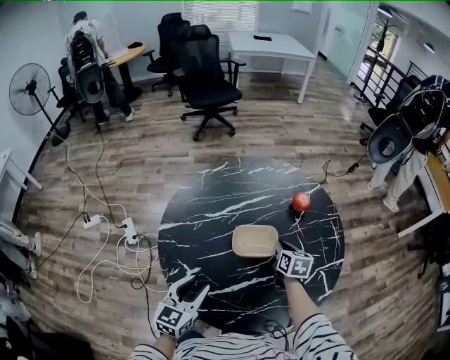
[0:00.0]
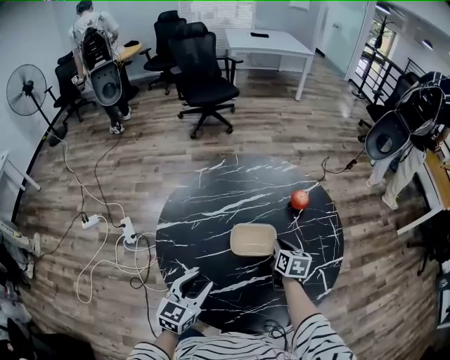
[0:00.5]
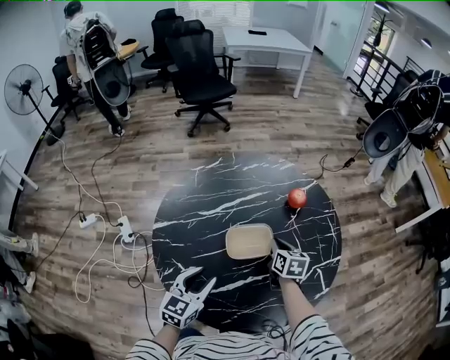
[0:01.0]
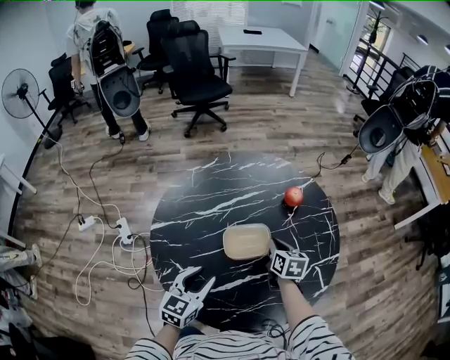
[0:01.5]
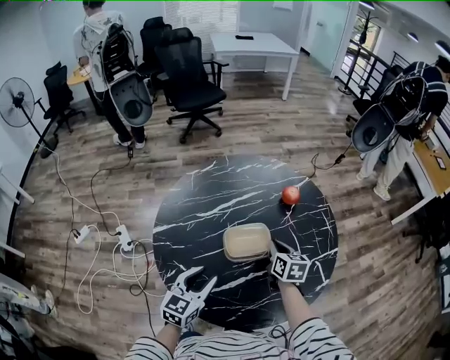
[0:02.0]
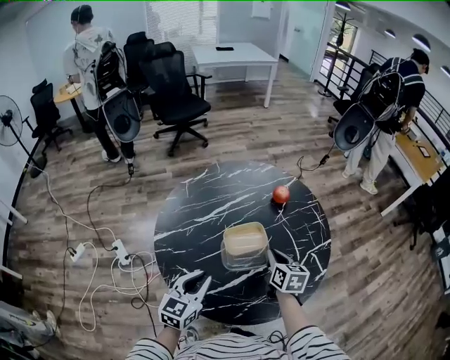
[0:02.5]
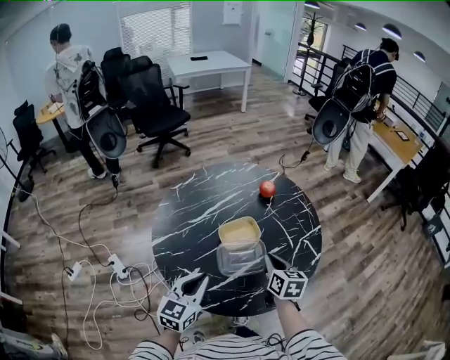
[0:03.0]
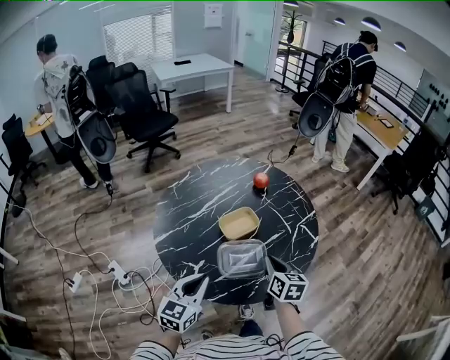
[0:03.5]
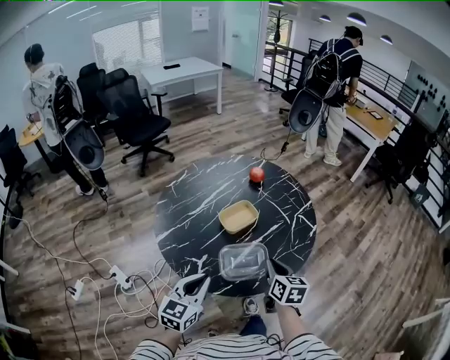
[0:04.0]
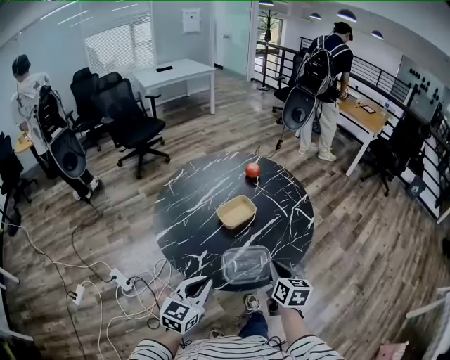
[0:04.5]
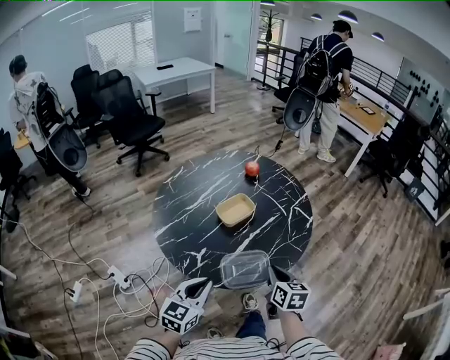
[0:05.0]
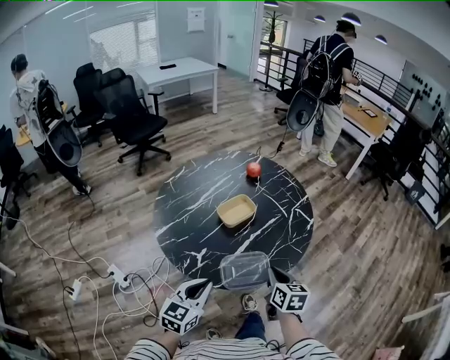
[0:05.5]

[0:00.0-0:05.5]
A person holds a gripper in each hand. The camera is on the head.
0:00.0 to 0:02.0: The grippers stay close to where they were, moving slightly.
0:02.0 to 0:03.5: The right gripper goes approximately 20 cm backward, and rotates about 20 degrees. Meanwhile the left gripper is displaced backward and upward by about 10 cm, and closes its fingers.
0:03.5 to 0:05.5: The two grippers go roughly 10 cm backward.

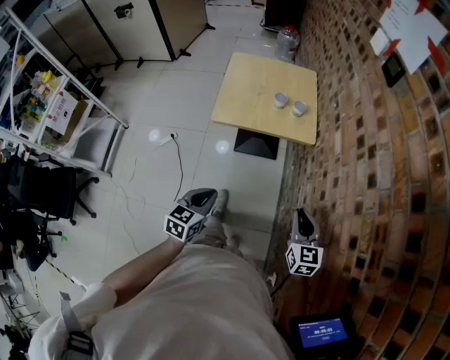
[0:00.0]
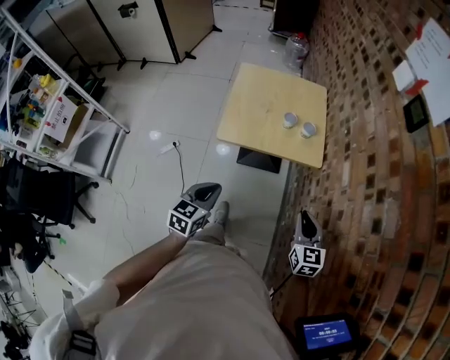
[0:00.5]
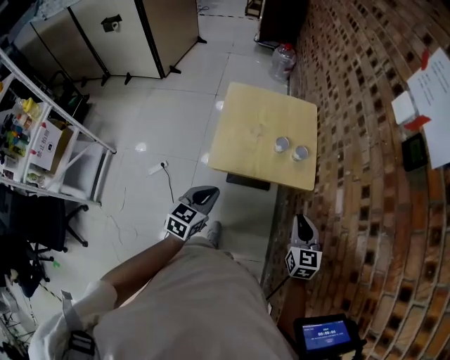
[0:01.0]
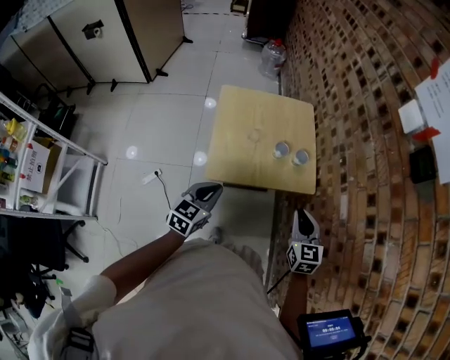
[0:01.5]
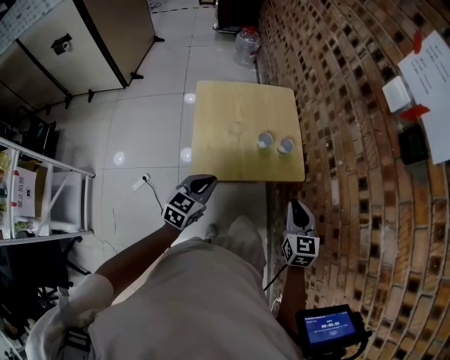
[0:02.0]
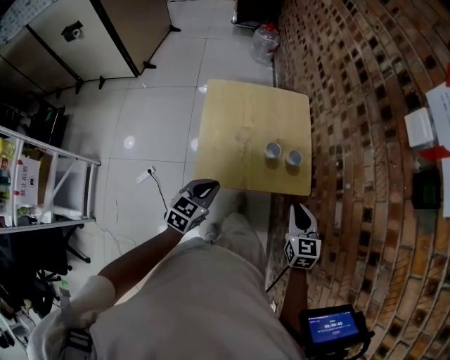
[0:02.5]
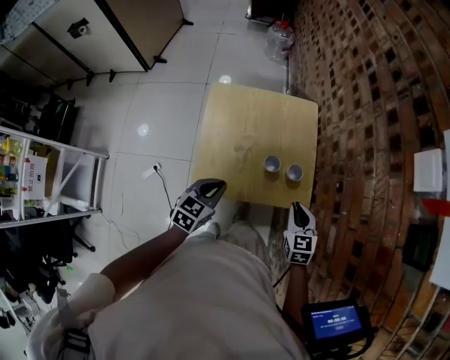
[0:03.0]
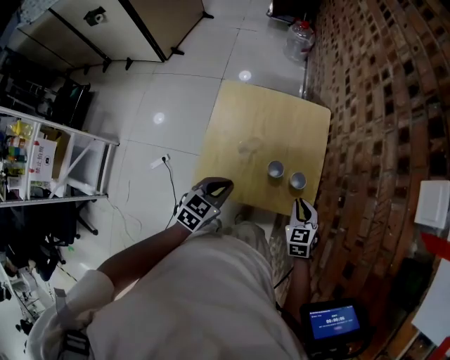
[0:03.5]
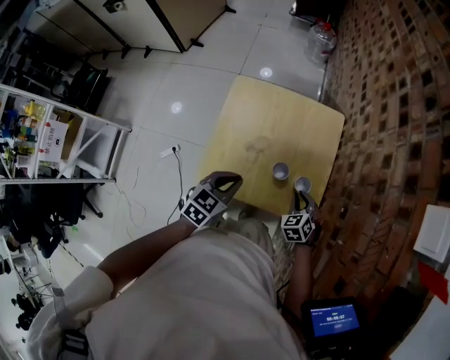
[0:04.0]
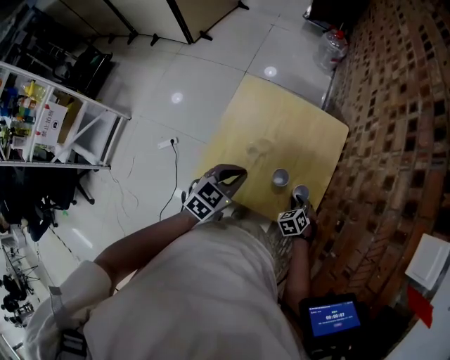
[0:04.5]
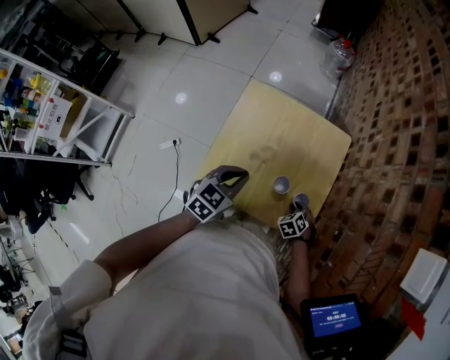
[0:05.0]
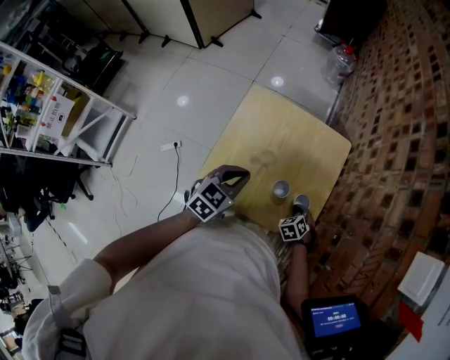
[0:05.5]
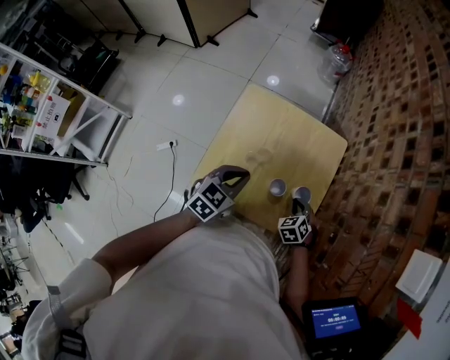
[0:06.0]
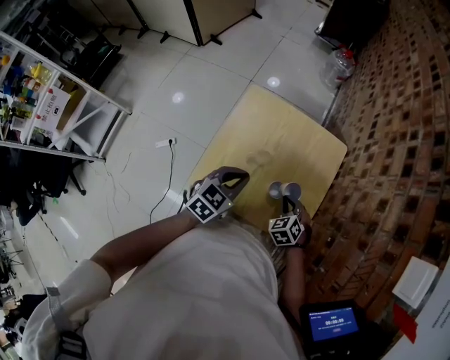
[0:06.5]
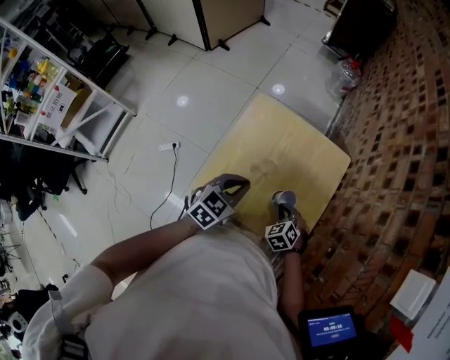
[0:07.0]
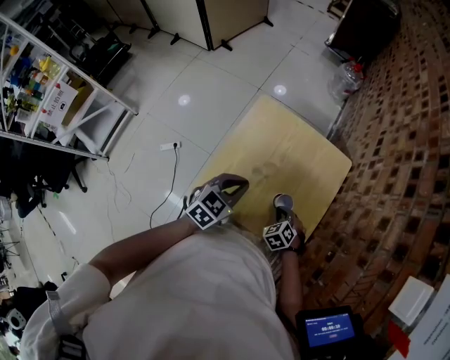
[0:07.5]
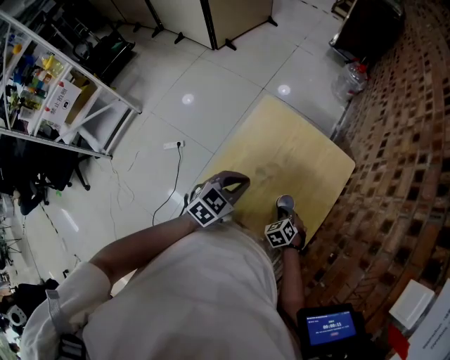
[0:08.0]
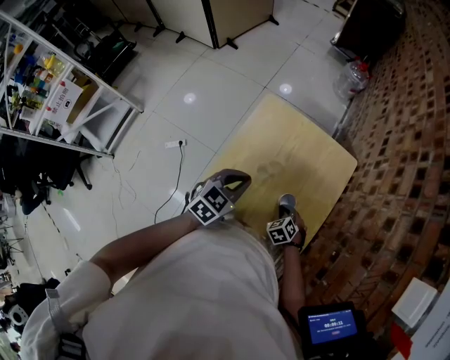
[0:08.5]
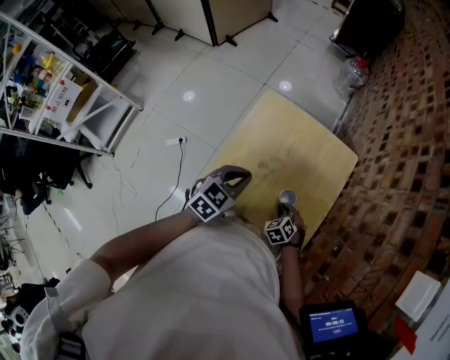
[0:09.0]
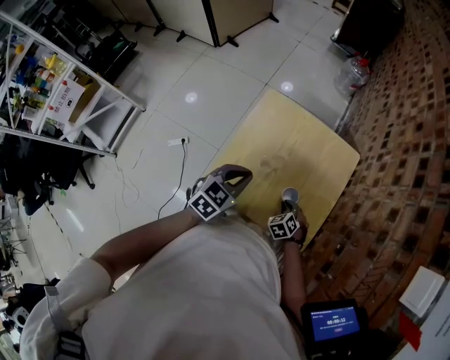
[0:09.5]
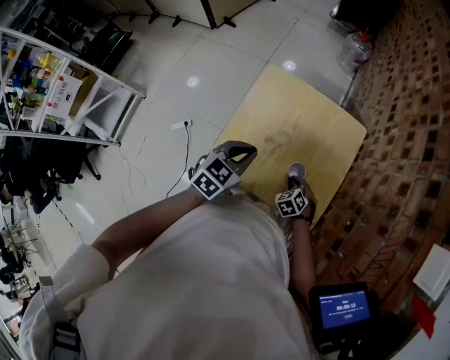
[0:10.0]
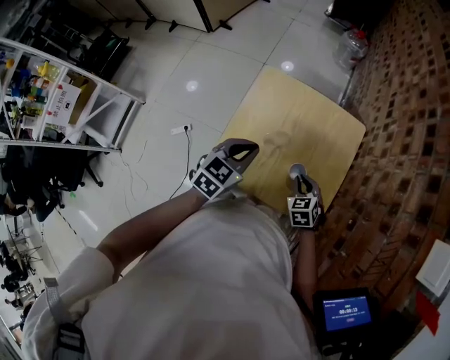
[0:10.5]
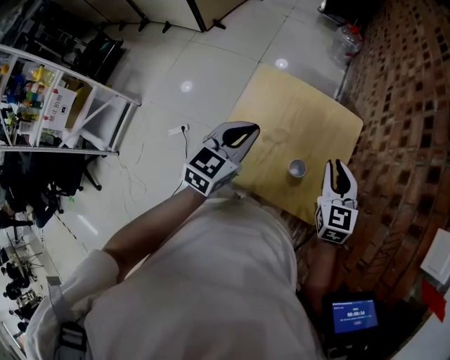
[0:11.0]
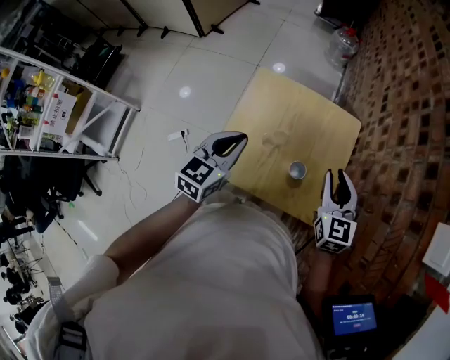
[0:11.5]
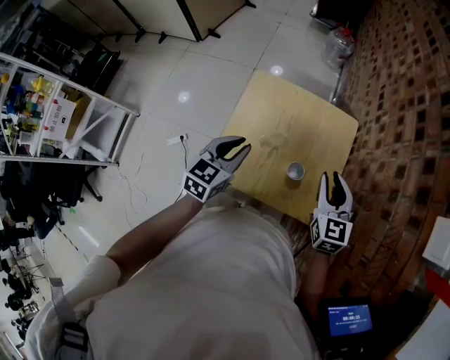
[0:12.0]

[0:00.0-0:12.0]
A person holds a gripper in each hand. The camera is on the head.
0:00.0 to 0:02.0: The right gripper goes approximately 30 cm forward and to the left; the left gripper moves forward, some 35 cm.
0:02.0 to 0:04.0: The left gripper shifts approximately 15 cm forward. Meanwhile the right gripper is displaced forward and downward by approximately 30 cm, and turns by approximately 50 degrees.
0:04.0 to 0:06.0: The left gripper moves forward, roughly 5 cm; the right gripper reaches roughly 10 cm downward, then returns.
0:06.0 to 0:08.0: The right gripper goes some 10 cm to the left and downward.
0:08.0 to 0:10.0: The grippers stay close to where they were, moving slightly.
0:10.0 to 0:12.0: The right gripper heads upward, covering about 30 cm, and angles its fingers upward, by roughly 40 degrees.

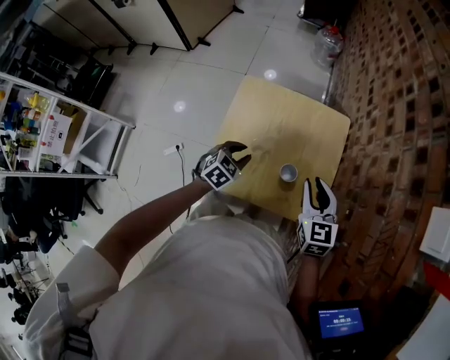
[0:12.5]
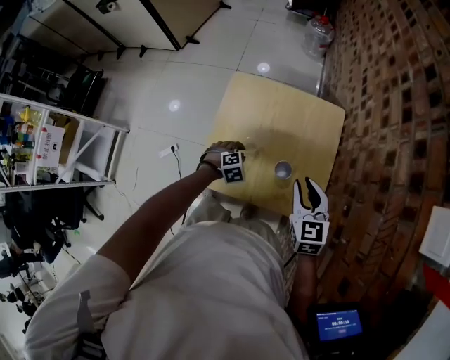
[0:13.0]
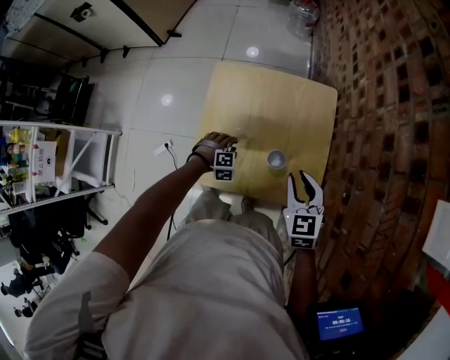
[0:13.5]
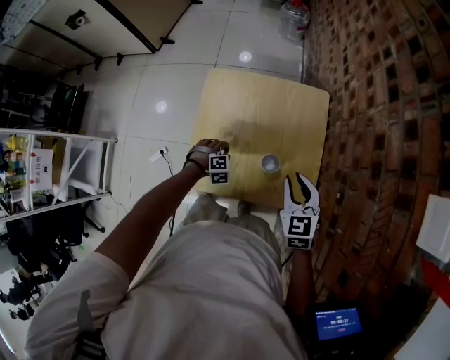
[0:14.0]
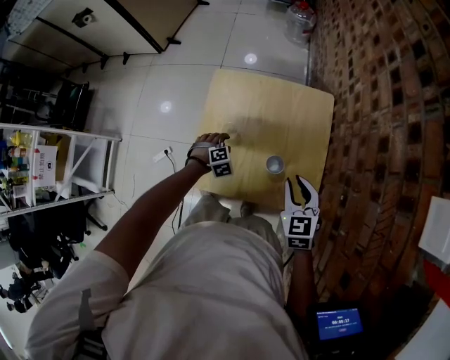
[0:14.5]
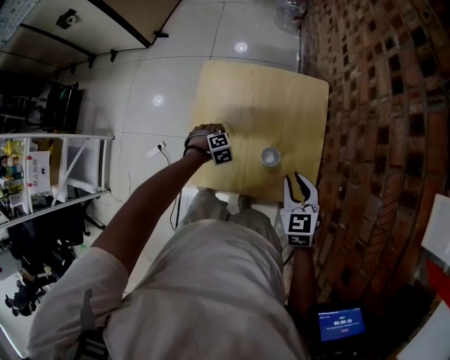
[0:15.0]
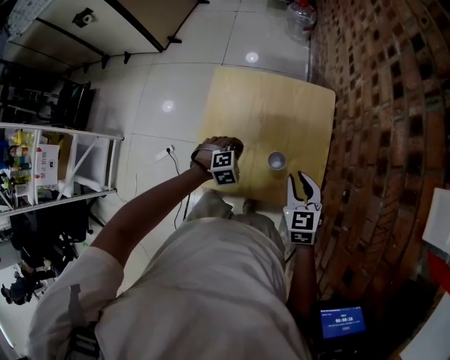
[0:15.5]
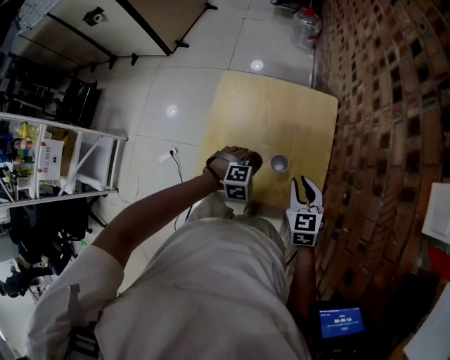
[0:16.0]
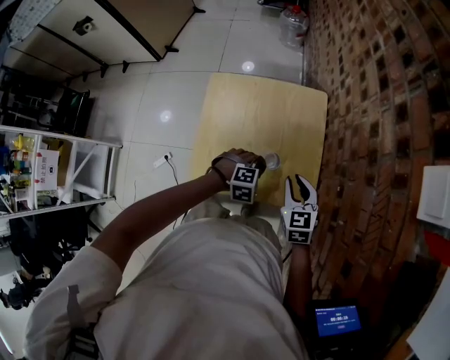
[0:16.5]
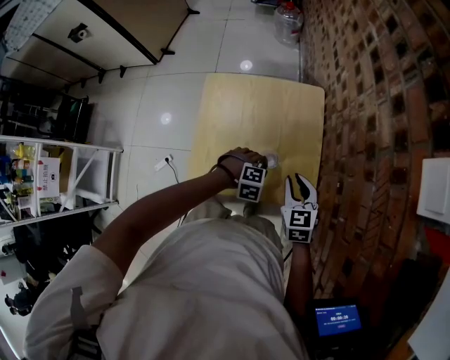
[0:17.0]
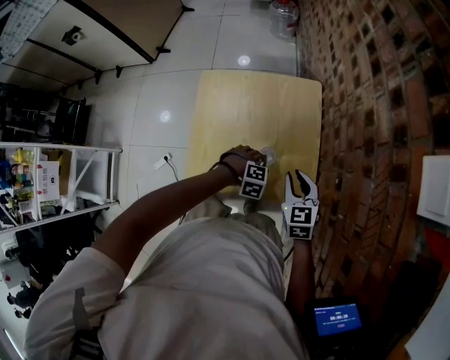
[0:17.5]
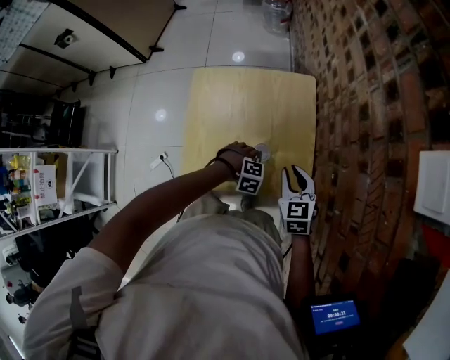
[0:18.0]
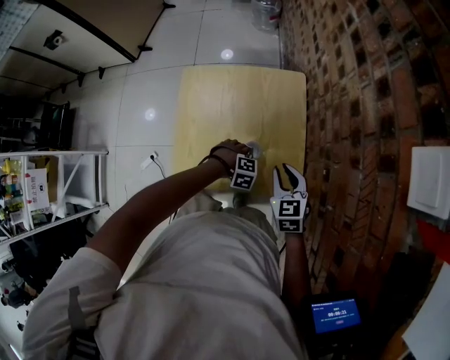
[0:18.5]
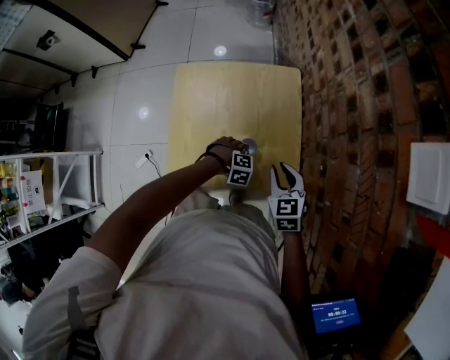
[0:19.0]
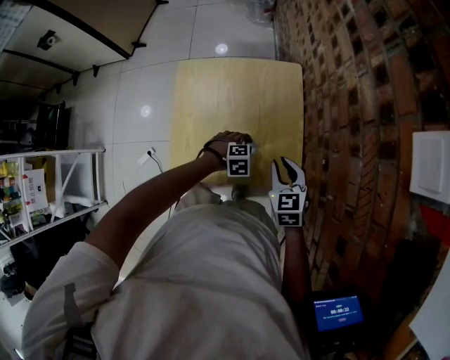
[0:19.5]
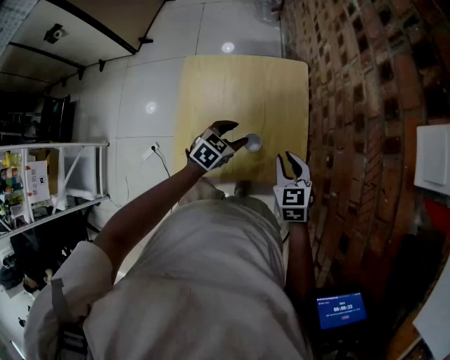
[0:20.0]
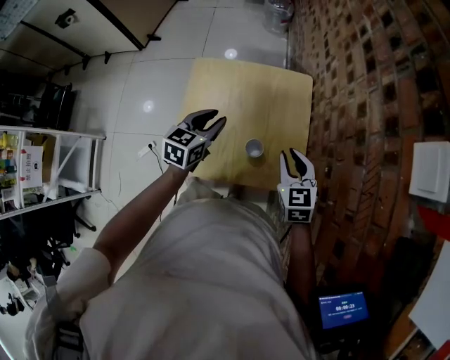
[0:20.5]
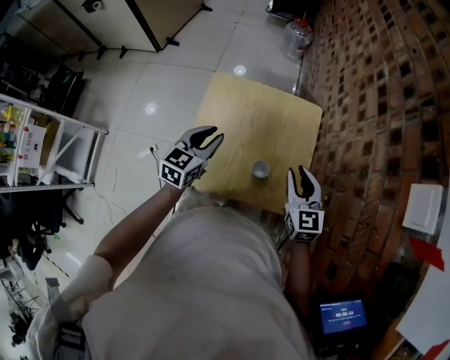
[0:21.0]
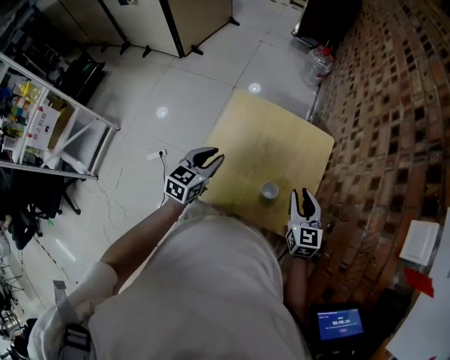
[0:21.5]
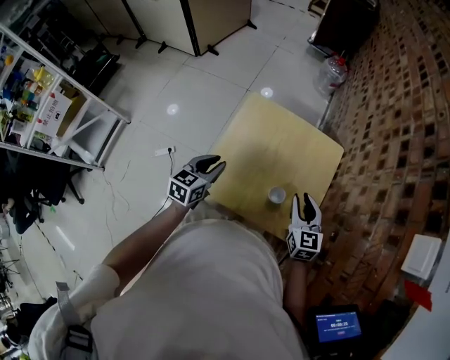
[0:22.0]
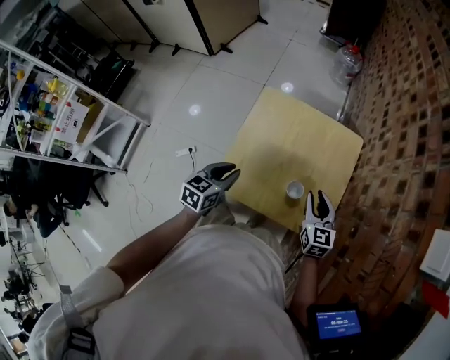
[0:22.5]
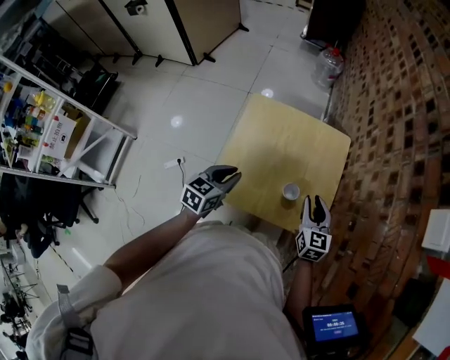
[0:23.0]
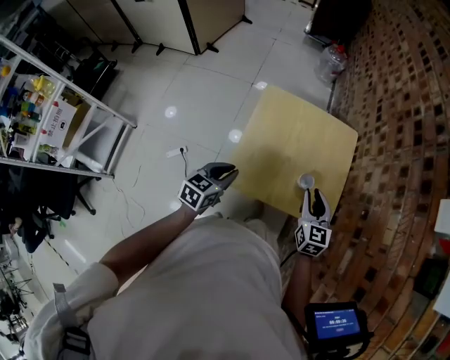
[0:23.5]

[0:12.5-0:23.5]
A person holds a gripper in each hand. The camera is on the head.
0:12.5 to 0:14.5: The left gripper goes roughly 15 cm downward, swivels about 40 degrees, and closes, then reopens; the right gripper is displaced downward by about 5 cm.
0:14.5 to 0:16.0: The left gripper is displaced to the right, upward and backward by approximately 20 cm, turns by approximately 20 degrees, and closes.
0:16.0 to 0:18.0: The left gripper travels downward by about 10 cm, and turns by about 20 degrees.
0:18.0 to 0:20.0: The left gripper shifts roughly 10 cm upward, twists some 60 degrees counterclockwise, seen from behind, and opens up.
0:20.0 to 0:21.5: The right gripper shifts roughly 5 cm upward, while the left gripper moves to the left and upward, roughly 20 cm, changes its angle by about 40 degrees, and closes up.
0:21.5 to 0:23.5: The left gripper goes some 15 cm backward and to the left. The right gripper heads to the left and backward, covering some 10 cm.
